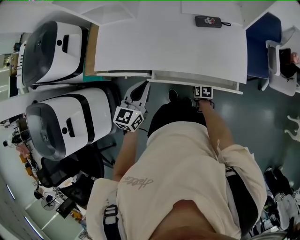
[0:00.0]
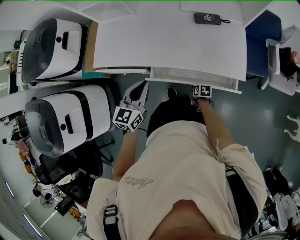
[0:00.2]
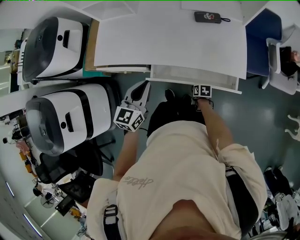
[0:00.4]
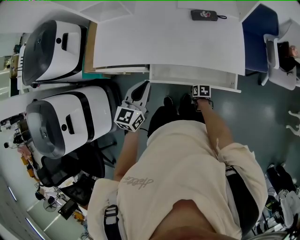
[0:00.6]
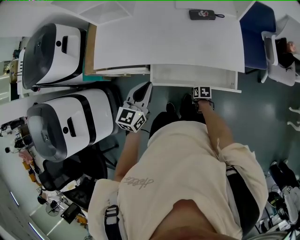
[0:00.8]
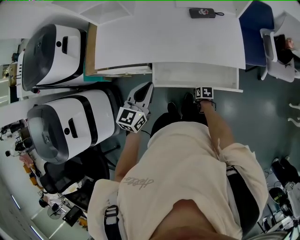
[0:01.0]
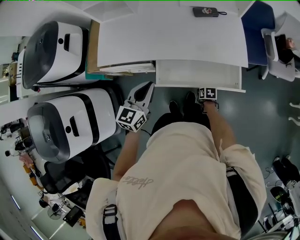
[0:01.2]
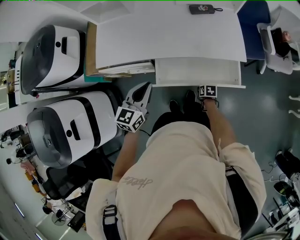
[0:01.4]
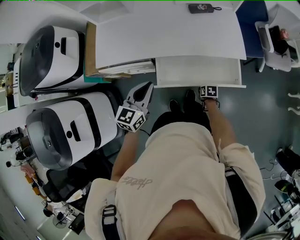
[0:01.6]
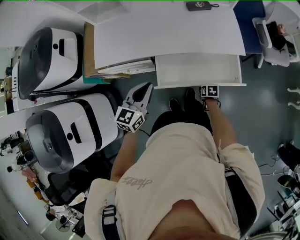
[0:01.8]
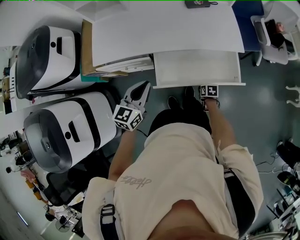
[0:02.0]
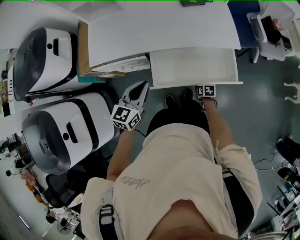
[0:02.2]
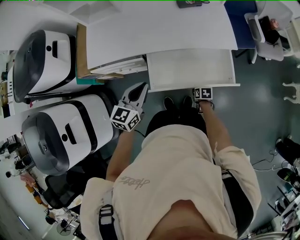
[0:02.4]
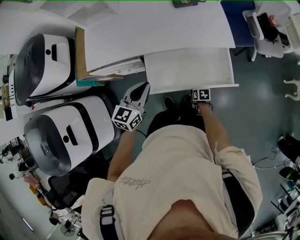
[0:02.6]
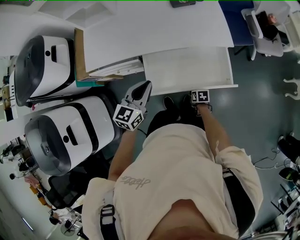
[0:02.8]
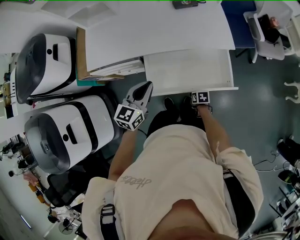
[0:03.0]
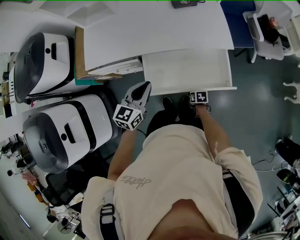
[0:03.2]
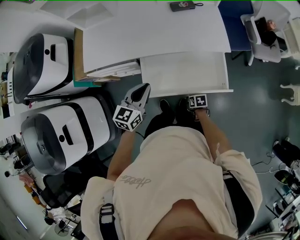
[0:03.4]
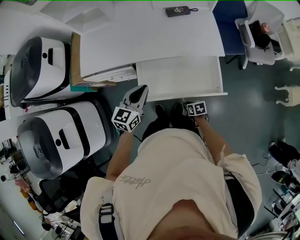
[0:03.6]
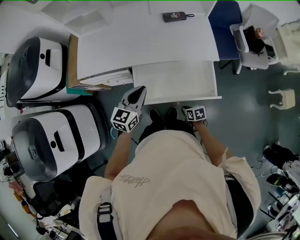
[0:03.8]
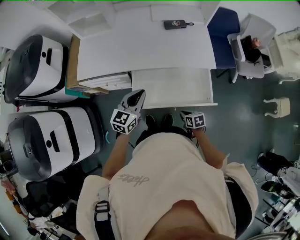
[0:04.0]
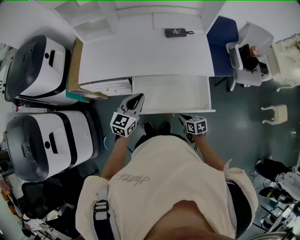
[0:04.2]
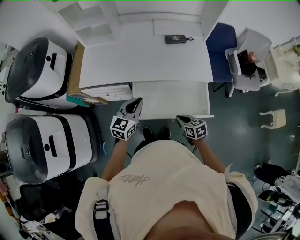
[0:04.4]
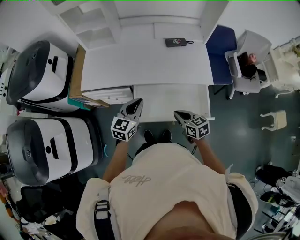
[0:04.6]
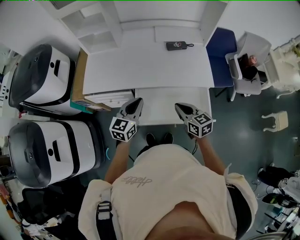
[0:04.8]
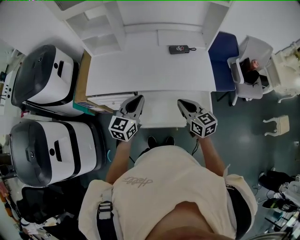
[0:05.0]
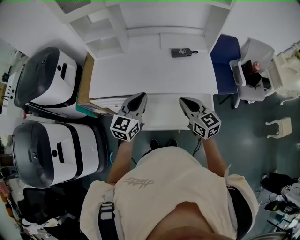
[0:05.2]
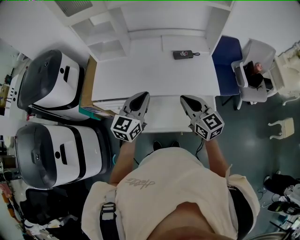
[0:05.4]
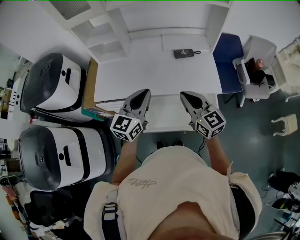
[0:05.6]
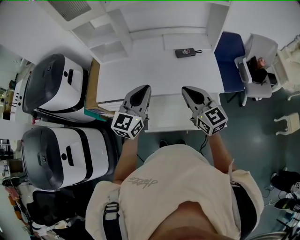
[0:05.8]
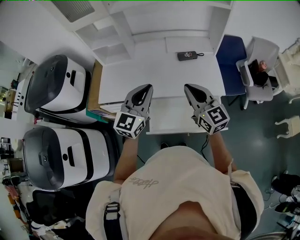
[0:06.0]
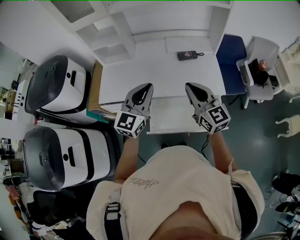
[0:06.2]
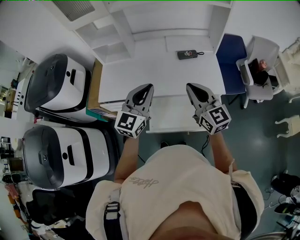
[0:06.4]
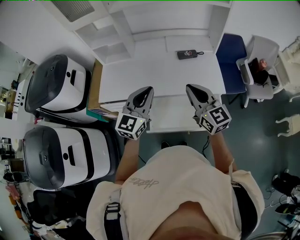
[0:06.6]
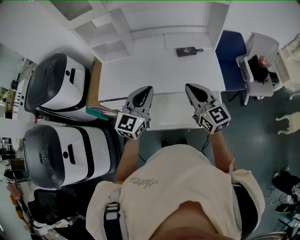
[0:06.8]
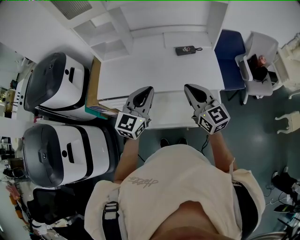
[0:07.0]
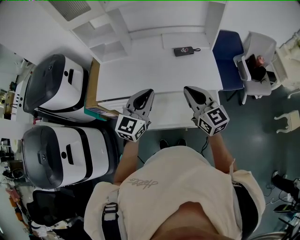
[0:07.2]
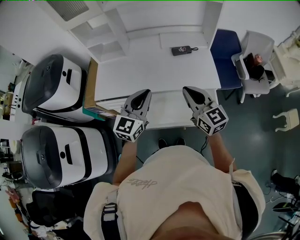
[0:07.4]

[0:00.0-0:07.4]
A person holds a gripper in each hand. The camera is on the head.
0:00.0 to 0:01.4: The left gripper travels backward and to the left by some 10 cm; the right gripper is displaced backward by some 10 cm.
0:01.4 to 0:03.0: The left gripper is displaced to the right by about 5 cm. Meanwhile the right gripper moves backward, about 10 cm.
0:03.0 to 0:04.4: The right gripper goes roughly 20 cm upward, and rotates about 40 degrees.
0:04.4 to 0:06.0: The left gripper goes about 20 cm upward, and rotates approximately 20 degrees; the right gripper heads upward and forward, covering about 35 cm, and tilts its fingers some 40 degrees upward.
0:06.0 to 0:07.4: The right gripper moves some 5 cm; the left gripper moves approximately 5 cm.

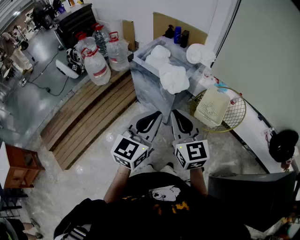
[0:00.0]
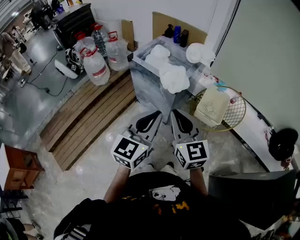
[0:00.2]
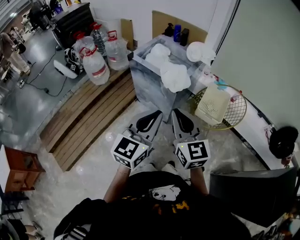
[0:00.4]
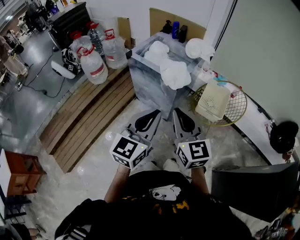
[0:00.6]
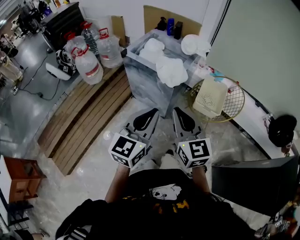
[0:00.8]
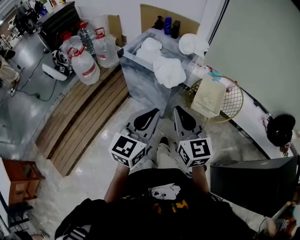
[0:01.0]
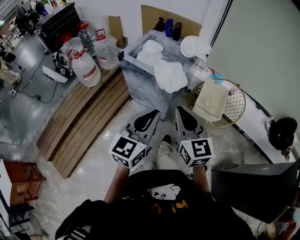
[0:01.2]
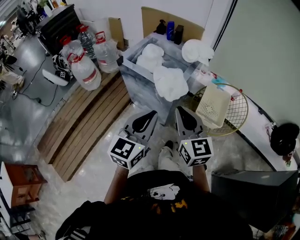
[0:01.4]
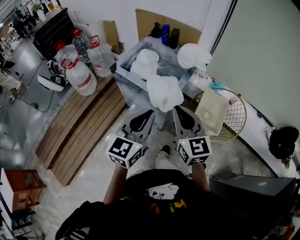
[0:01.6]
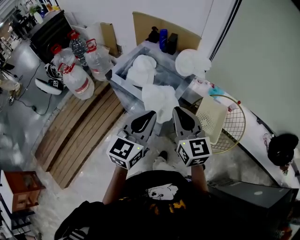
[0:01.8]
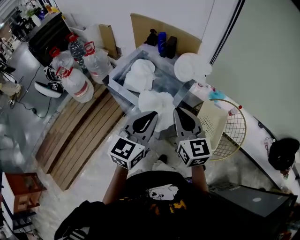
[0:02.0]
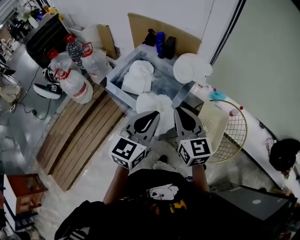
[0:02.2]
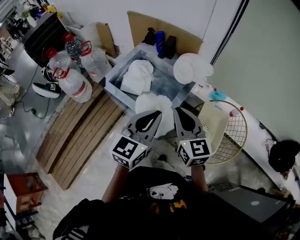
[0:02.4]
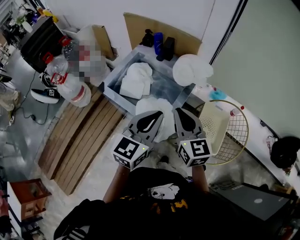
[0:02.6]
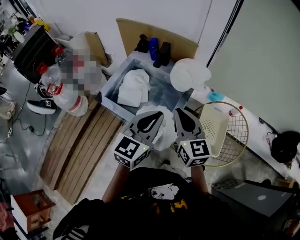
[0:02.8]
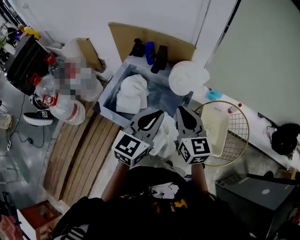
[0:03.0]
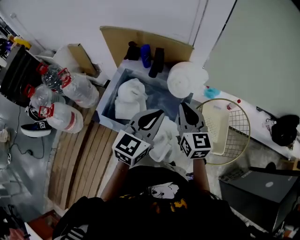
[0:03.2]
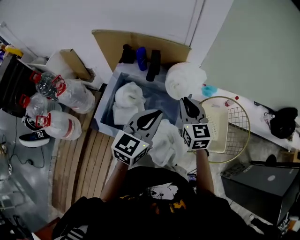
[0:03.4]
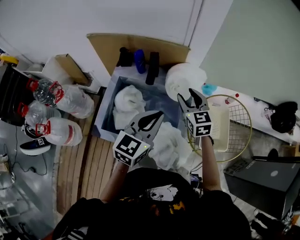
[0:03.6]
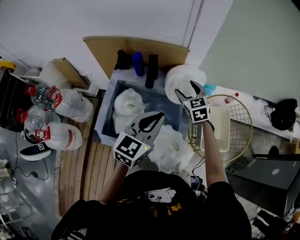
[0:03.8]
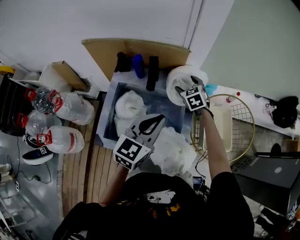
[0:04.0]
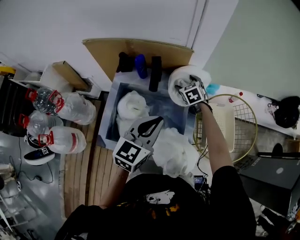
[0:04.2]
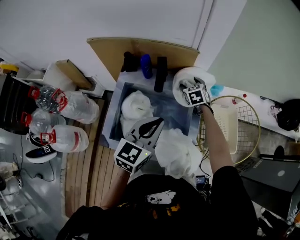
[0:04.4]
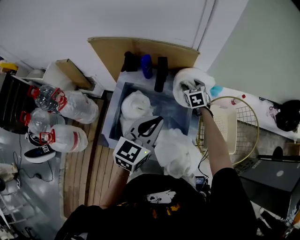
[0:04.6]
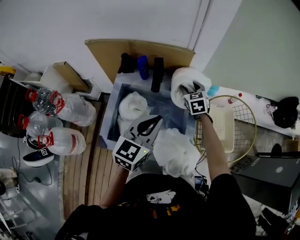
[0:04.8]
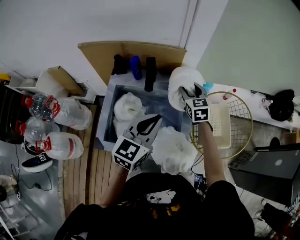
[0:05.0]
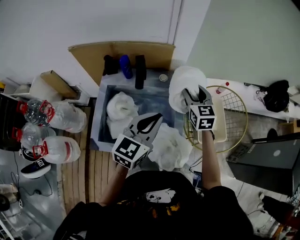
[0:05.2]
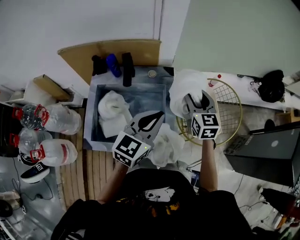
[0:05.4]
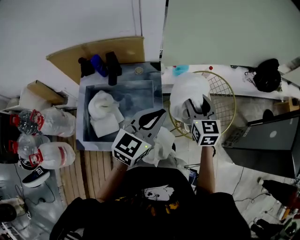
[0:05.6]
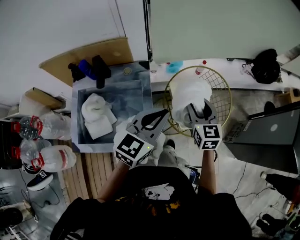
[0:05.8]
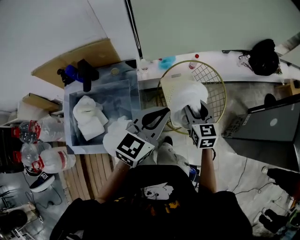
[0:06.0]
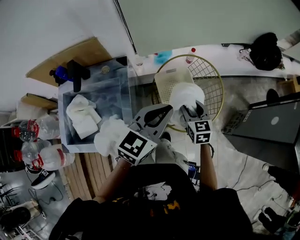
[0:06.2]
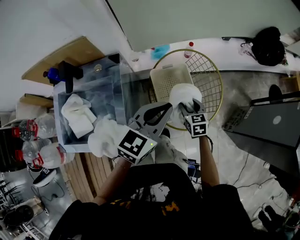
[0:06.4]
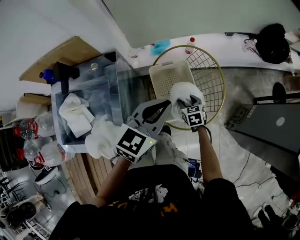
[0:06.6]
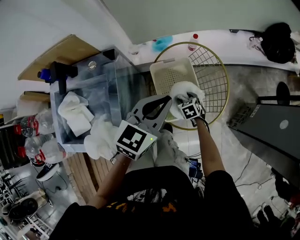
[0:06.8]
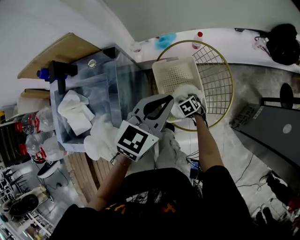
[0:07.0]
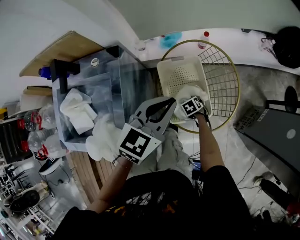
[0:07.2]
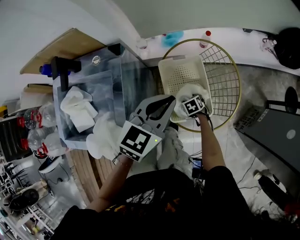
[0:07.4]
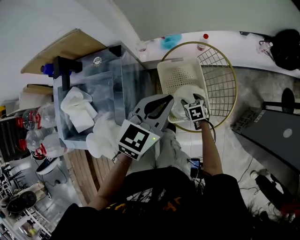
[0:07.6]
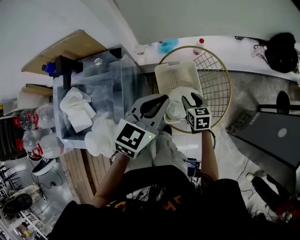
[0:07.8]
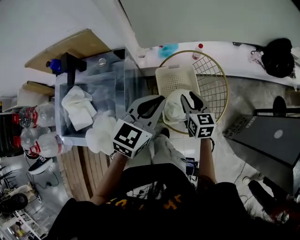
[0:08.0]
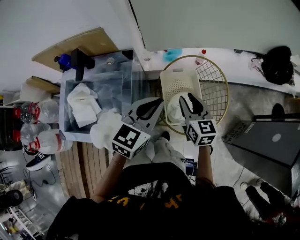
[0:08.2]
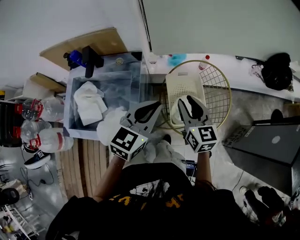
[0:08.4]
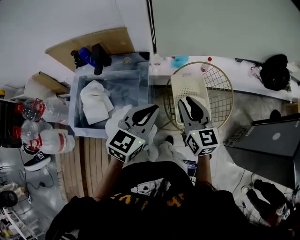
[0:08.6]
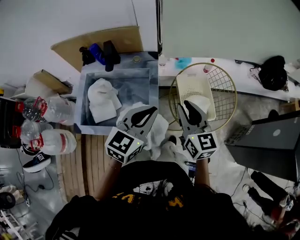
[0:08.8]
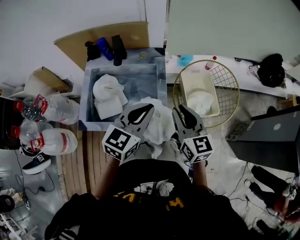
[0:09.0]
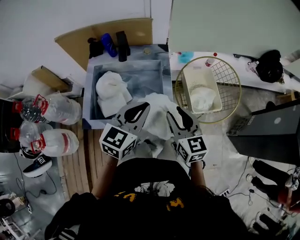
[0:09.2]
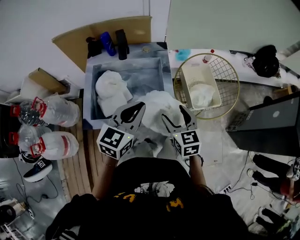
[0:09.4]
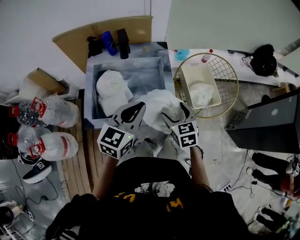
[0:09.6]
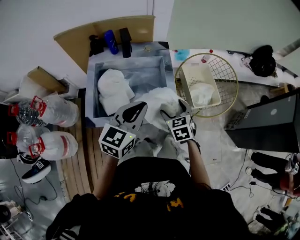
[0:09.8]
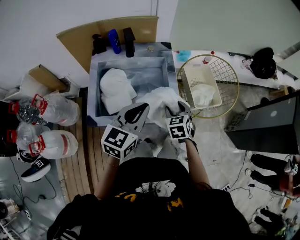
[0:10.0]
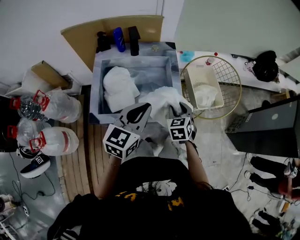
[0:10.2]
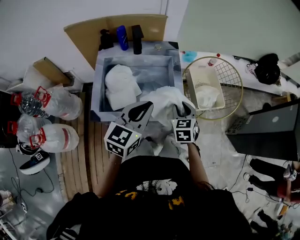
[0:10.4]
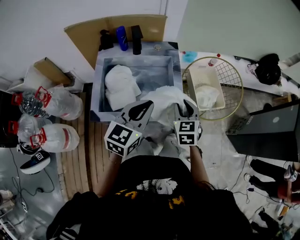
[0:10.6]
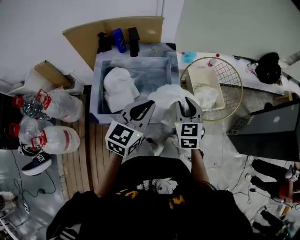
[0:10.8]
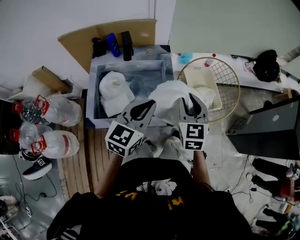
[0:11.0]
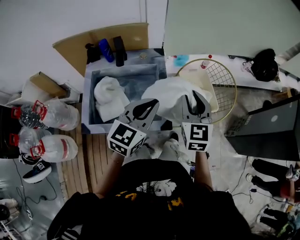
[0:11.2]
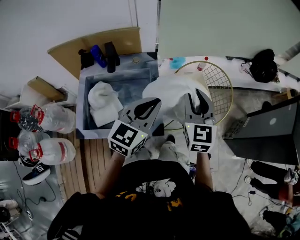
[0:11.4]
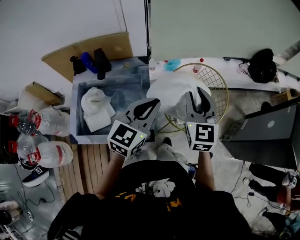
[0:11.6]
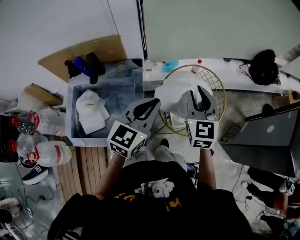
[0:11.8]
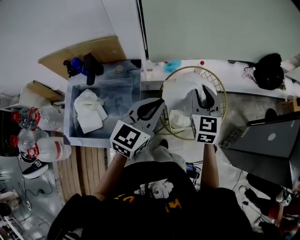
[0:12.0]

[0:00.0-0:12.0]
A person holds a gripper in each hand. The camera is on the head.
0:00.0 to 0:01.6: Both grippers travel together forward, some 20 cm.
0:01.6 to 0:03.0: The two grippers go about 25 cm forward.
0:03.0 to 0:04.4: The right gripper goes approximately 35 cm forward and downward, tilts its fingers some 30 degrees downward, and opens its fingers, while the left gripper moves forward, to the left and downward, some 15 cm.
0:04.4 to 0:06.0: The right gripper travels to the right and backward by approximately 40 cm, and turns by about 30 degrees, while the left gripper is displaced to the right by about 30 cm, and swivels approximately 20 degrees.
0:06.0 to 0:07.6: The left gripper shifts by approximately 15 cm. Meanwhile the right gripper moves downward, roughly 30 cm, and tips its fingers downward by roughly 30 degrees.
0:07.6 to 0:09.0: The right gripper is displaced upward, to the left and backward by about 50 cm, tips its fingers upward by about 50 degrees, and closes its fingers; the left gripper travels to the left and backward by some 30 cm.
0:09.0 to 0:10.4: The right gripper shifts approximately 15 cm downward and to the left, swivels roughly 40 degrees, and opens and closes again. The left gripper heads to the left and backward, covering about 10 cm.
0:10.4 to 0:12.0: The left gripper moves to the right and forward, roughly 30 cm, while the right gripper moves forward, to the right and upward, some 35 cm, and changes its angle by roughly 20 degrees.

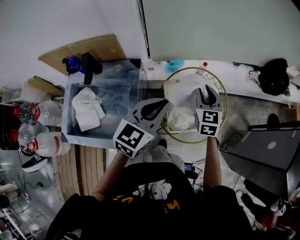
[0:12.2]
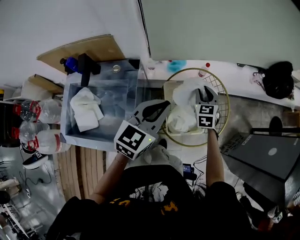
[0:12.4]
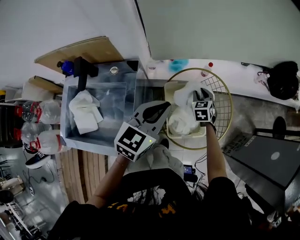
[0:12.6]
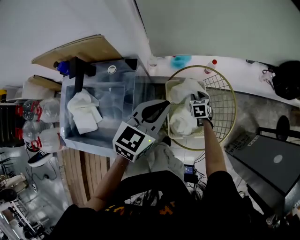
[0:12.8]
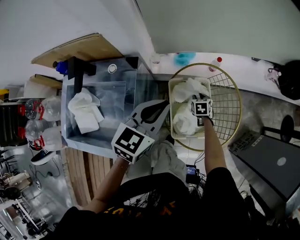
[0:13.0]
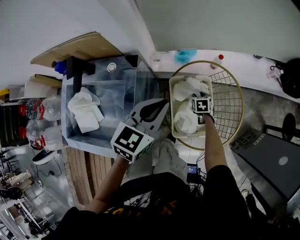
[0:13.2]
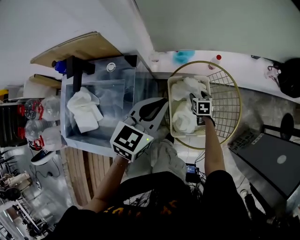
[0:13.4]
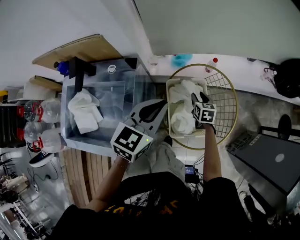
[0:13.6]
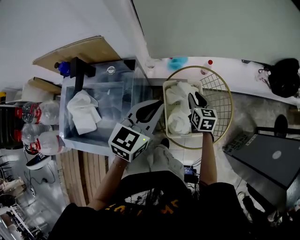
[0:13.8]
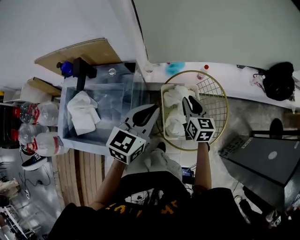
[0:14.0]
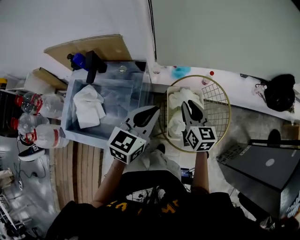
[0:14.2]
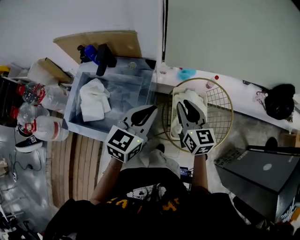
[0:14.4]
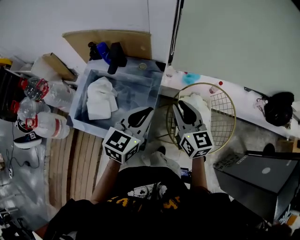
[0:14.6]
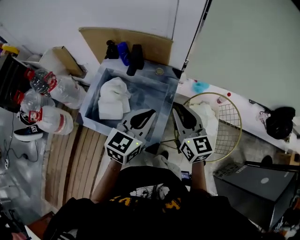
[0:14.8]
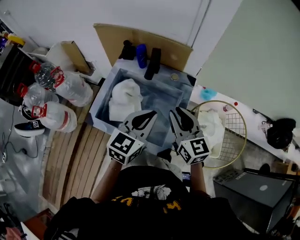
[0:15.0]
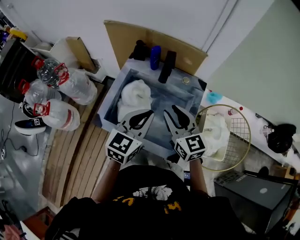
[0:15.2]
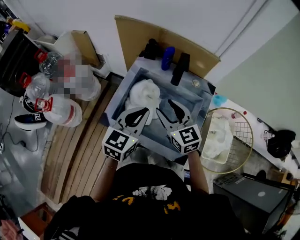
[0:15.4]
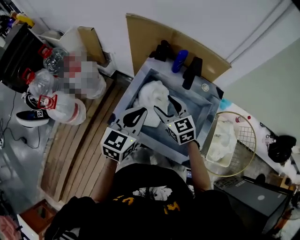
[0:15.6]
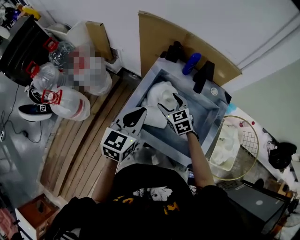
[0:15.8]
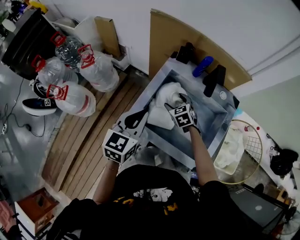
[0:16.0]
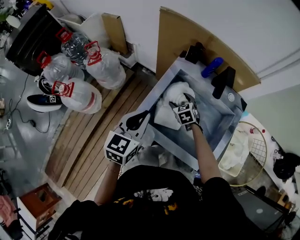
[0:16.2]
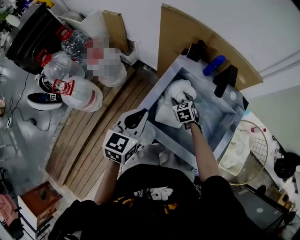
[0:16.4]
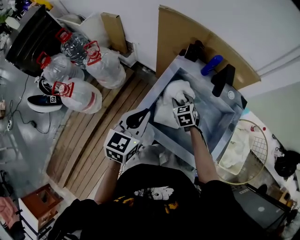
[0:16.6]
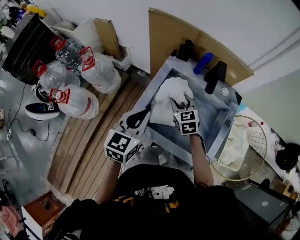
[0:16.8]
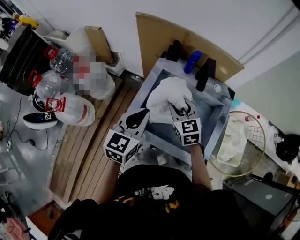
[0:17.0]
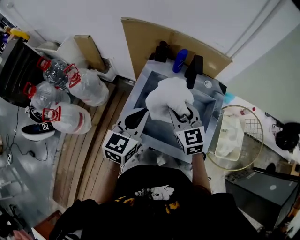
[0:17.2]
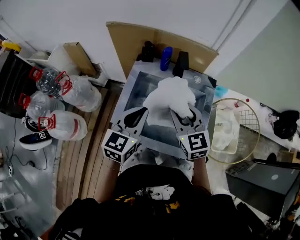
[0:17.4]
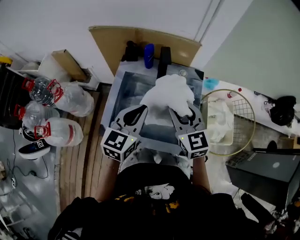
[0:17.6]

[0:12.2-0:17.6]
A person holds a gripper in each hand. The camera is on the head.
0:12.2 to 0:13.6: The left gripper shifts approximately 10 cm forward and downward; the right gripper goes approximately 25 cm downward, and changes its angle by about 30 degrees.
0:13.6 to 0:15.0: The right gripper goes some 50 cm to the left, upward and backward, and angles its fingers upward, by some 30 degrees, while the left gripper goes about 30 cm to the left and backward, and rotates some 20 degrees.
0:15.0 to 0:16.2: The left gripper travels to the left by approximately 30 cm, and rotates roughly 20 degrees. The right gripper moves downward, to the left and forward, approximately 40 cm, angles its fingers downward, by roughly 40 degrees, and opens its fingers.
0:16.2 to 0:17.6: The left gripper travels to the right by approximately 15 cm, and rotates some 20 degrees, while the right gripper travels upward, to the right and backward by roughly 35 cm, tips its fingers upward by approximately 40 degrees, and closes up.
